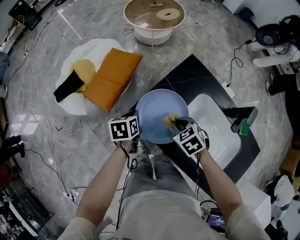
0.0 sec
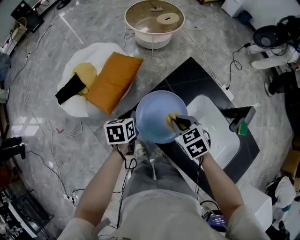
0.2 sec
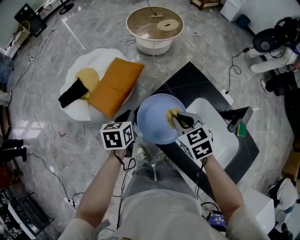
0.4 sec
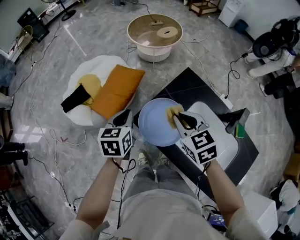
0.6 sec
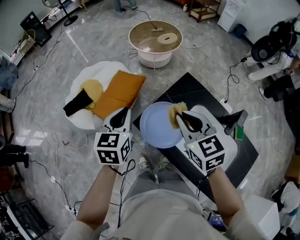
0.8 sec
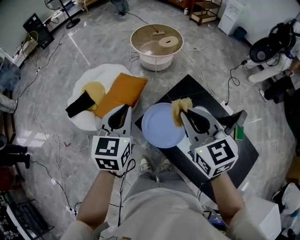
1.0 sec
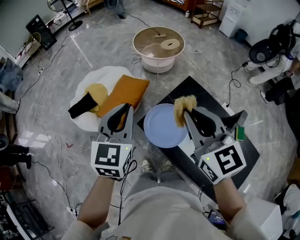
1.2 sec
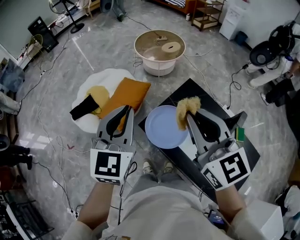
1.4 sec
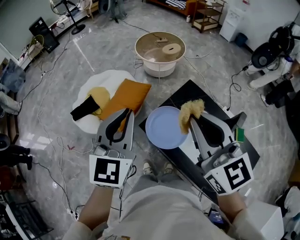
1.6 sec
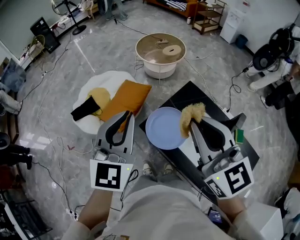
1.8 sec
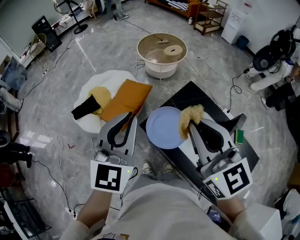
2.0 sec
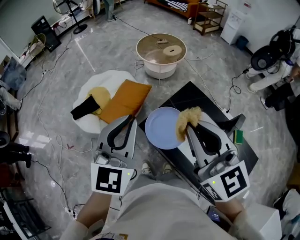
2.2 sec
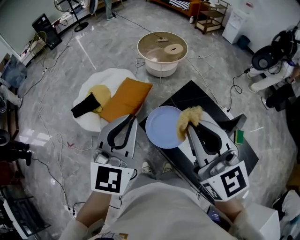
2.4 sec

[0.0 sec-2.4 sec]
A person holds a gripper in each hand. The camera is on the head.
0.0 sec to 1.2 sec: Both grippers move upward, some 35 cm. The left gripper points its fingers approximately 40 degrees further upward. The right gripper tilts its fingers approximately 50 degrees upward.
1.2 sec to 2.4 sec: The grippers both shift upward and backward by roughly 10 cm.

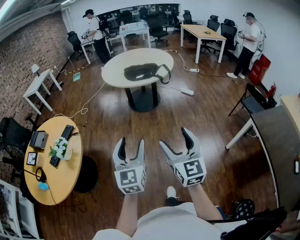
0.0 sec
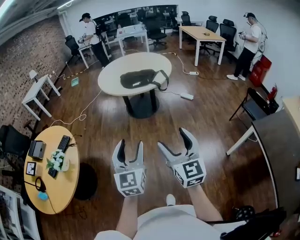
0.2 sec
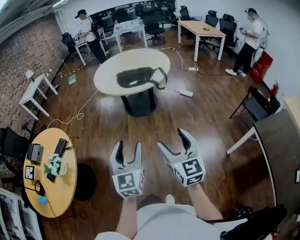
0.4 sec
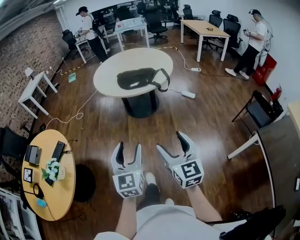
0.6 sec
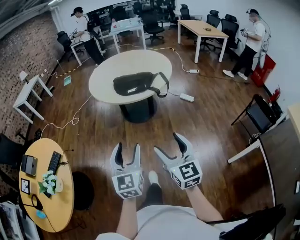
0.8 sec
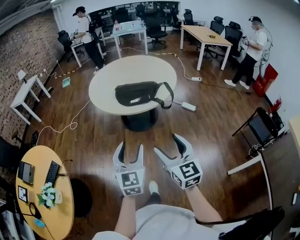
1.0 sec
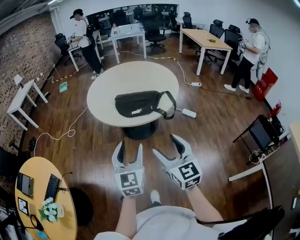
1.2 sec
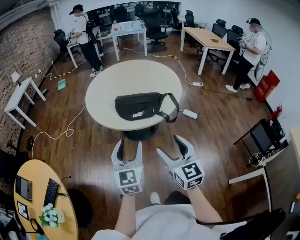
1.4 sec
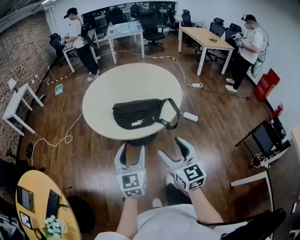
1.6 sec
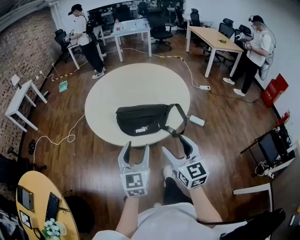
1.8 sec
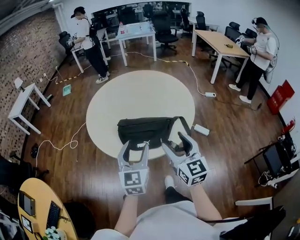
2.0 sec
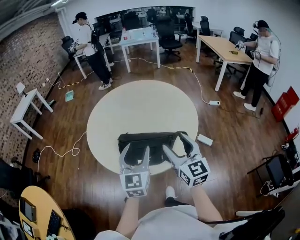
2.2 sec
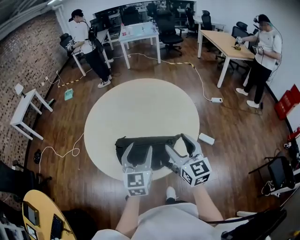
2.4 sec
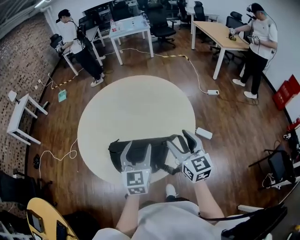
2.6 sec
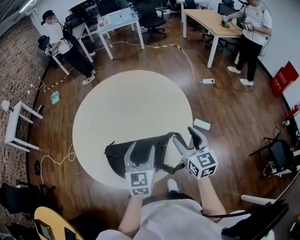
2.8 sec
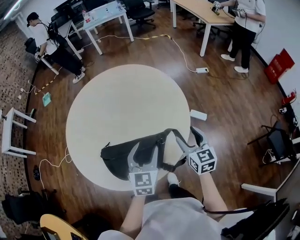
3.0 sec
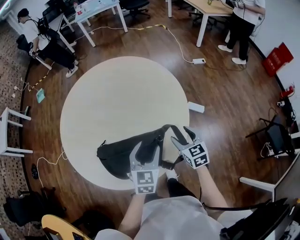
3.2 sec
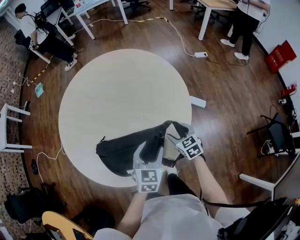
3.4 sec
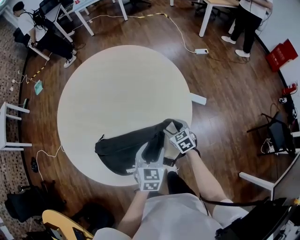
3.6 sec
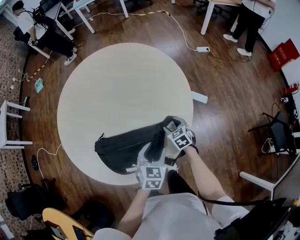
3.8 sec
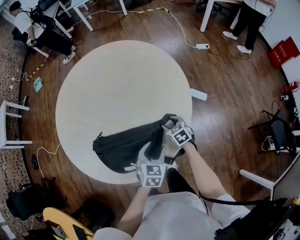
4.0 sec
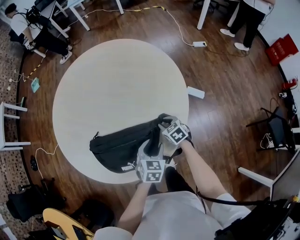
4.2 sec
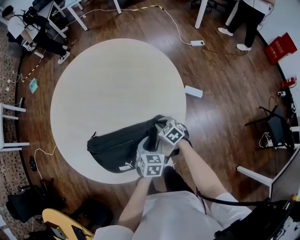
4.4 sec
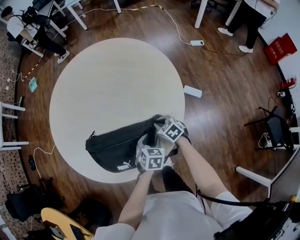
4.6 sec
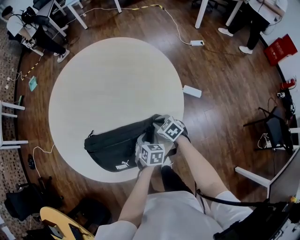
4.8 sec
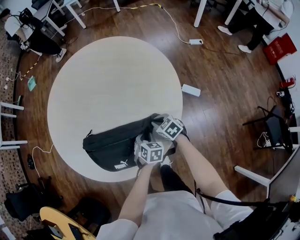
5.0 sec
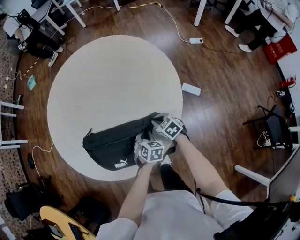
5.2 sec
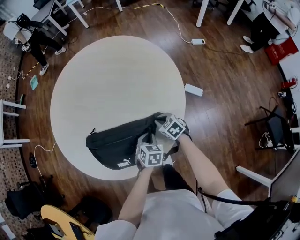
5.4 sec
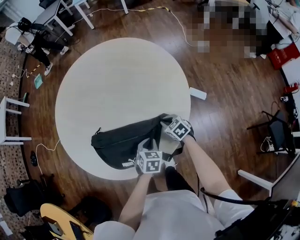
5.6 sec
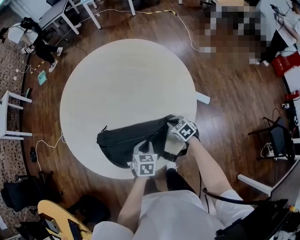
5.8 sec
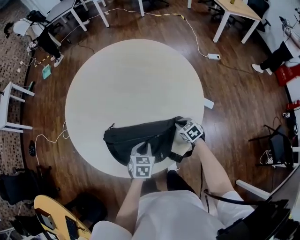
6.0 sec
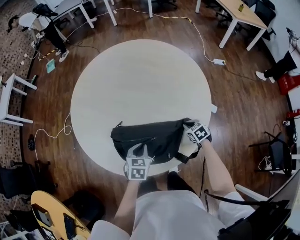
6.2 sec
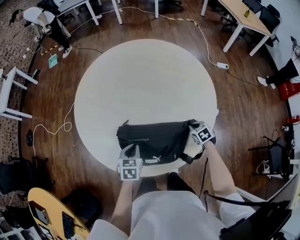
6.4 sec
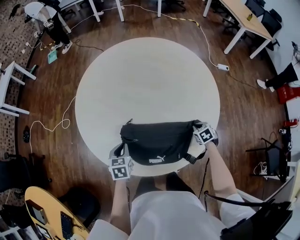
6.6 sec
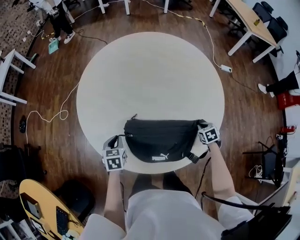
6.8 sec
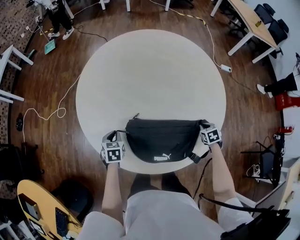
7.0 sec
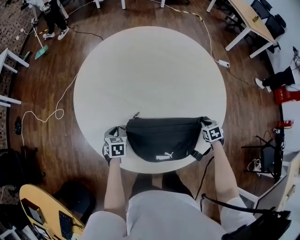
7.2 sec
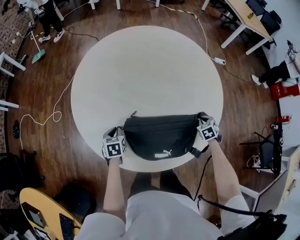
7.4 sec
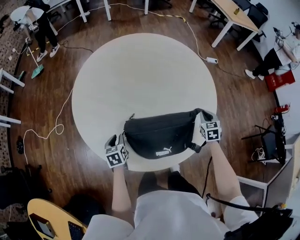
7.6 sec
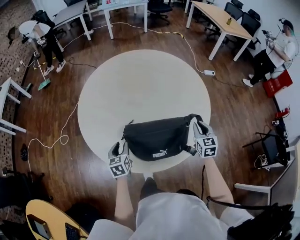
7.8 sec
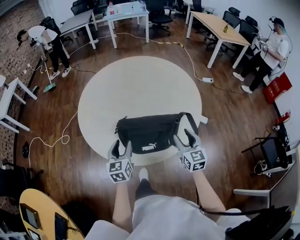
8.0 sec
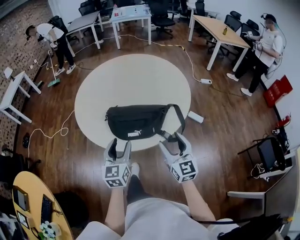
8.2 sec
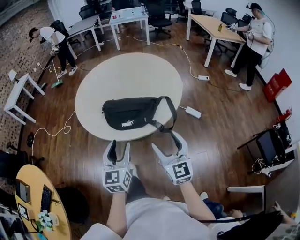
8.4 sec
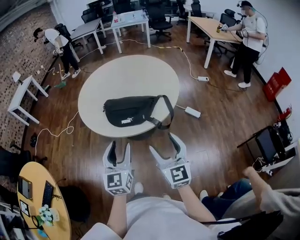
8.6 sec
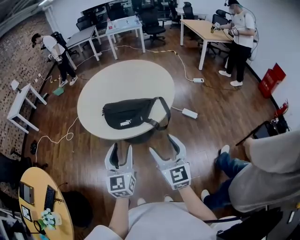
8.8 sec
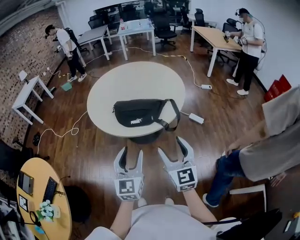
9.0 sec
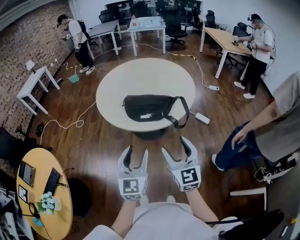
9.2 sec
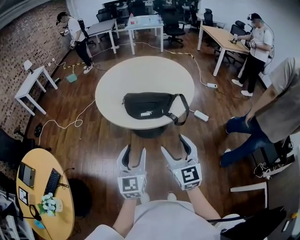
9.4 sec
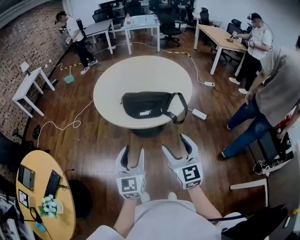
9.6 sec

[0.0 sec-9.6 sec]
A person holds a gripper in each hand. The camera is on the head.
0.0 sec to 1.6 sec: The two grippers travel together, forward, approximately 60 cm.
1.6 sec to 3.2 sec: The two grippers travel together, forward and to the right, some 50 cm. The left gripper turns by about 30 degrees. Meanwhile the right gripper moves downward, some 20 cm, and changes its angle by roughly 30 degrees.
3.2 sec to 4.8 sec: Both grippers travel together downward, approximately 20 cm. The left gripper changes its angle by about 30 degrees, and closes up. Meanwhile the right gripper turns by about 30 degrees, and closes.
4.8 sec to 6.4 sec: The left gripper heads to the left, covering about 25 cm, and closes its fingers.
6.4 sec to 8.0 sec: The right gripper moves upward and backward, roughly 30 cm, tips its fingers upward by approximately 50 degrees, and opens; the left gripper moves upward and backward, about 15 cm, rotates approximately 30 degrees, and opens.
8.0 sec to 9.6 sec: The left gripper travels backward by some 40 cm. Meanwhile the right gripper shifts approximately 40 cm backward and upward.

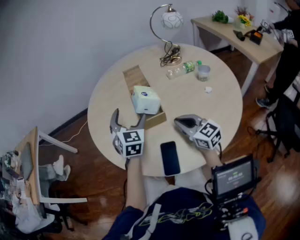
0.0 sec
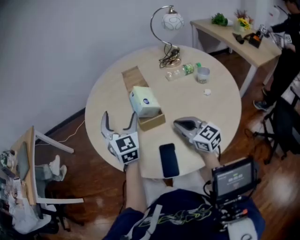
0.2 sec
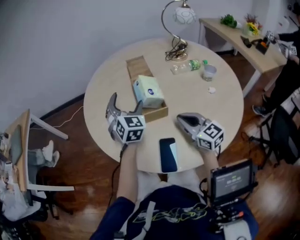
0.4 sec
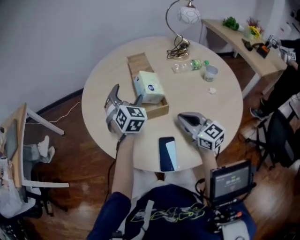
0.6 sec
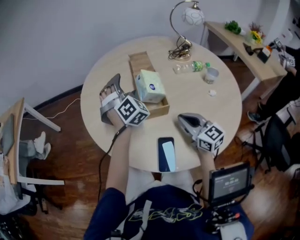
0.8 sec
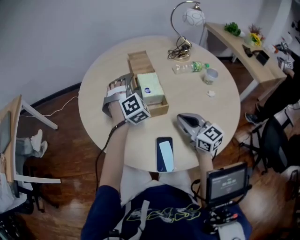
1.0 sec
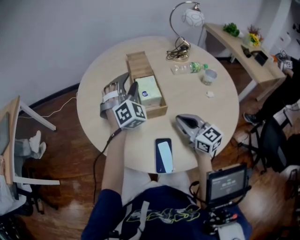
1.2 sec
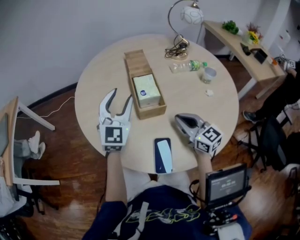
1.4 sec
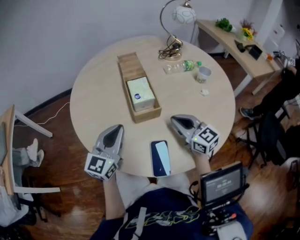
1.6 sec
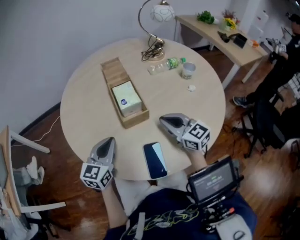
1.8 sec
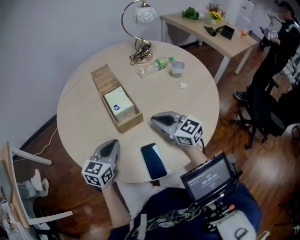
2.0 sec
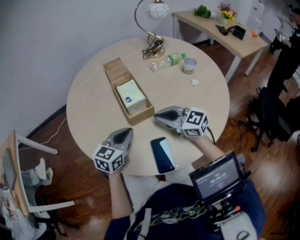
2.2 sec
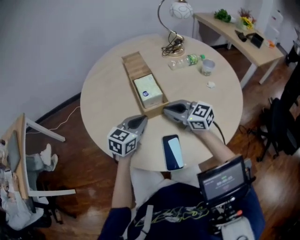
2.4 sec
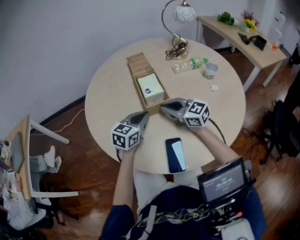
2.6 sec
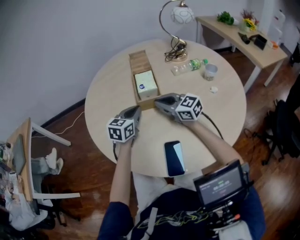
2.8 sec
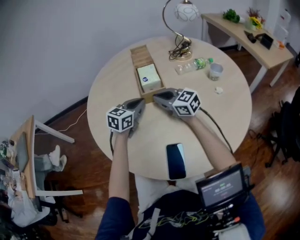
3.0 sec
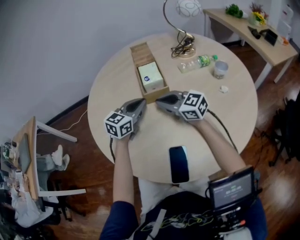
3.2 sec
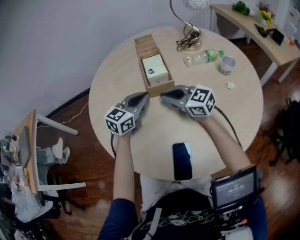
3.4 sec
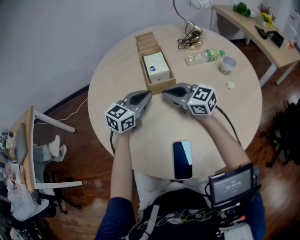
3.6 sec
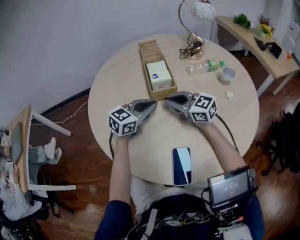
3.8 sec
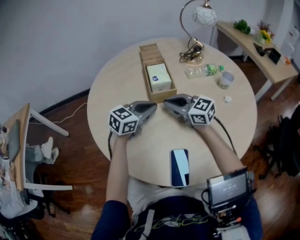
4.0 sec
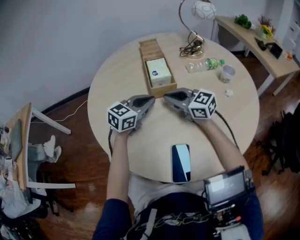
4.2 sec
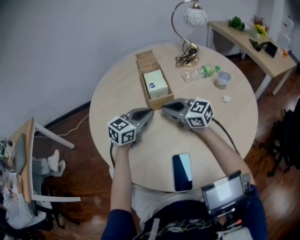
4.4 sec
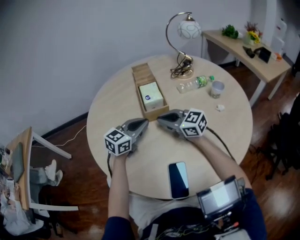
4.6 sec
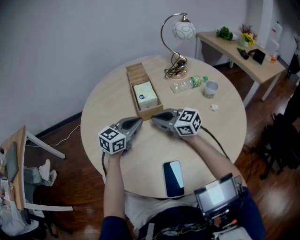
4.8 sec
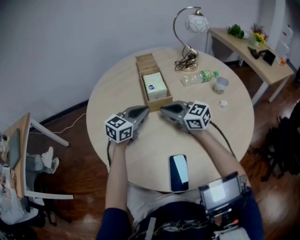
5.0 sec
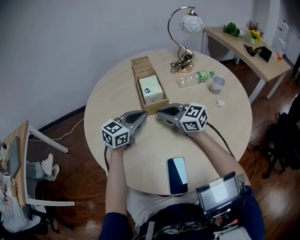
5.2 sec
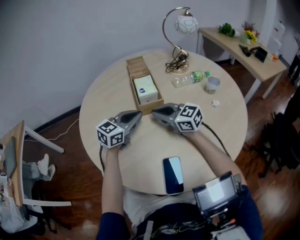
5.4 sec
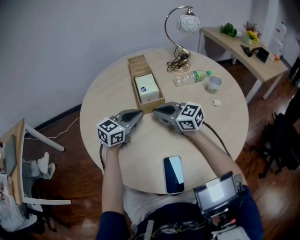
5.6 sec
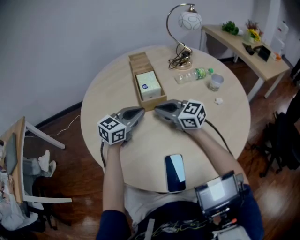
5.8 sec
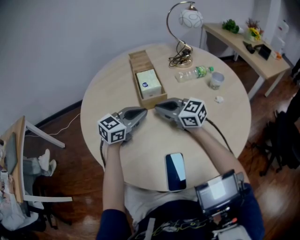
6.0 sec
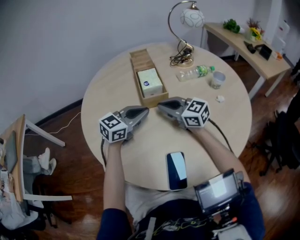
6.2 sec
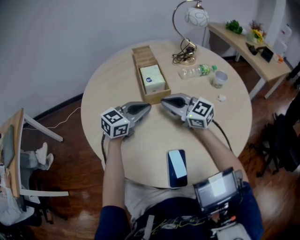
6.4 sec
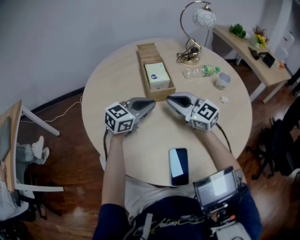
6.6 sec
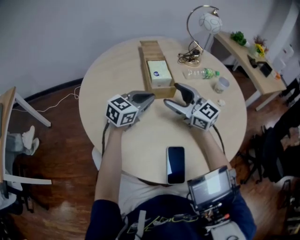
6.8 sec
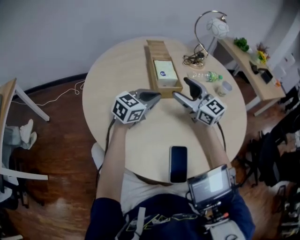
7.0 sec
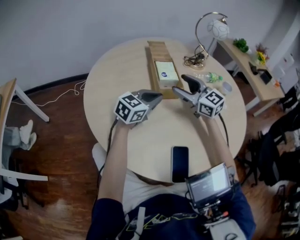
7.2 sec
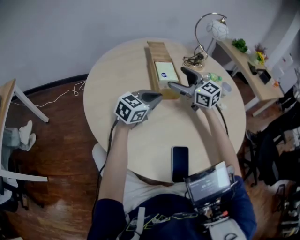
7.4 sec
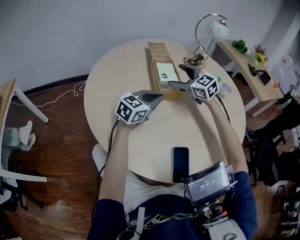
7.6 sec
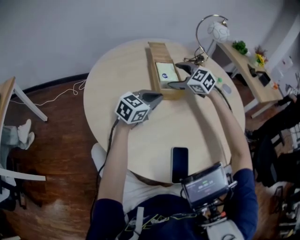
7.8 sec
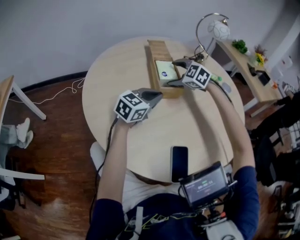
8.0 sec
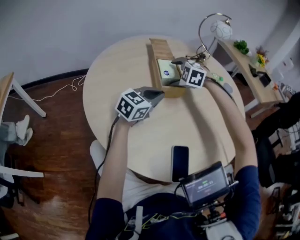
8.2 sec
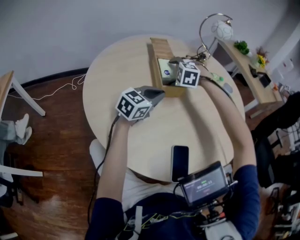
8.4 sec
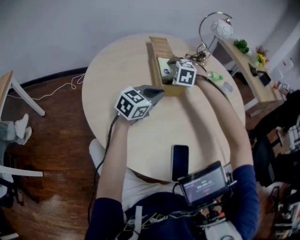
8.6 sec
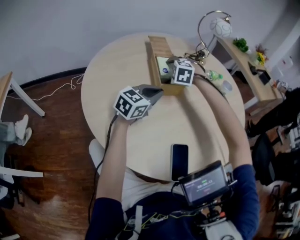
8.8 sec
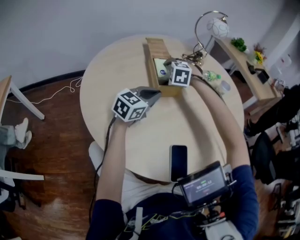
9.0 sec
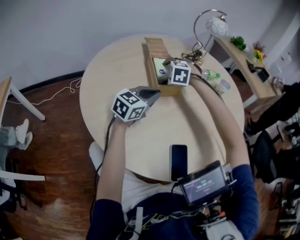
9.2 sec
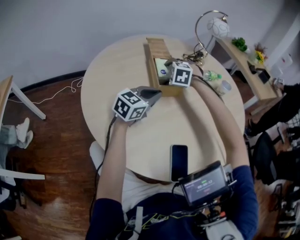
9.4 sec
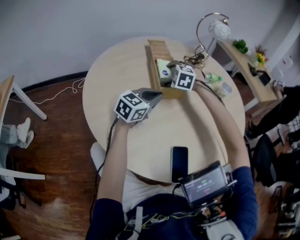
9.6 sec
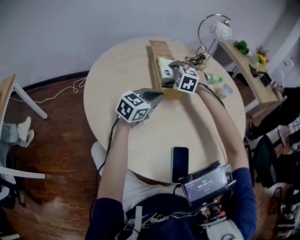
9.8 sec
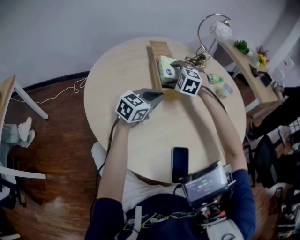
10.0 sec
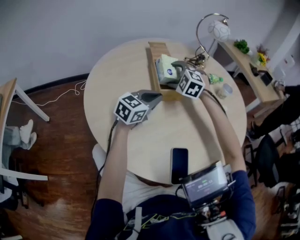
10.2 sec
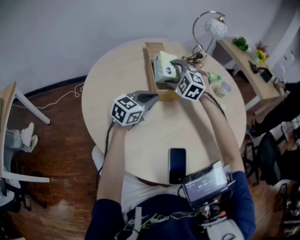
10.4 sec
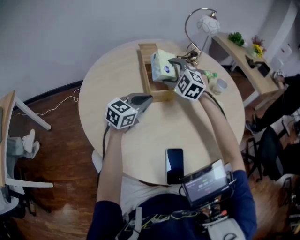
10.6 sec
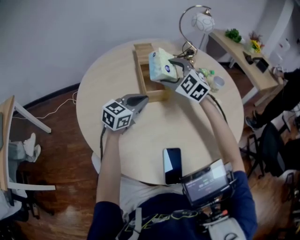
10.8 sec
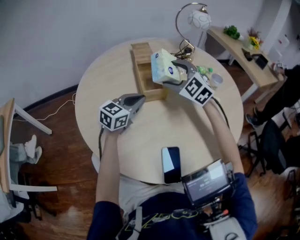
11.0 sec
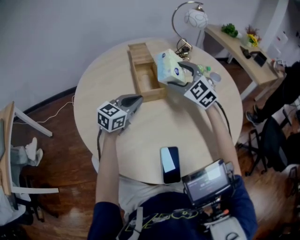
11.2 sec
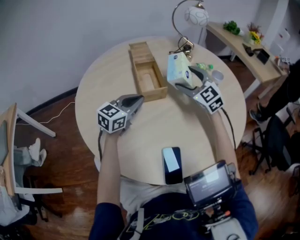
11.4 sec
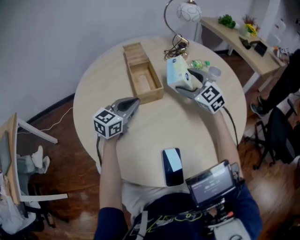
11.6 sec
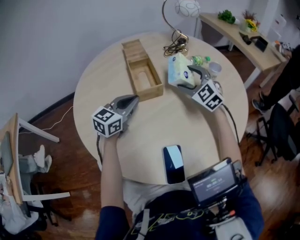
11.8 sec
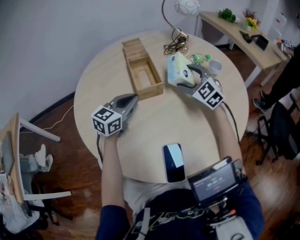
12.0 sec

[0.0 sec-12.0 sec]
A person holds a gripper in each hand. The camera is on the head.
0.0 sec to 1.6 sec: The left gripper is displaced backward and to the left by about 10 cm, rotates about 40 degrees, and closes up.
1.6 sec to 3.0 sec: The right gripper moves forward and to the left, some 20 cm, while the left gripper heads forward, covering roughly 15 cm, and turns by approximately 20 degrees.
3.0 sec to 6.0 sec: There are only small adjustments of the grippers.
6.0 sec to 7.6 sec: The right gripper travels forward by some 10 cm, swivels roughly 20 degrees, and opens its fingers.
7.6 sec to 9.0 sec: The right gripper shifts about 10 cm downward, and tips its fingers downward by about 40 degrees.
9.0 sec to 10.4 sec: The right gripper goes roughly 10 cm upward, and turns by about 30 degrees.
10.4 sec to 12.0 sec: The right gripper heads to the right, covering about 15 cm, and swivels some 30 degrees.
